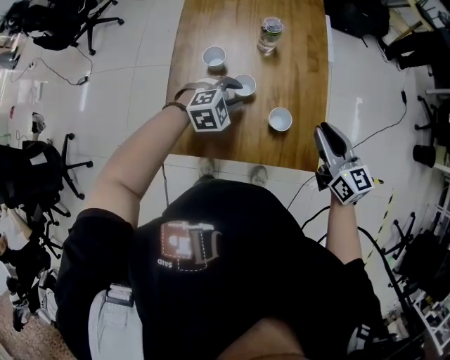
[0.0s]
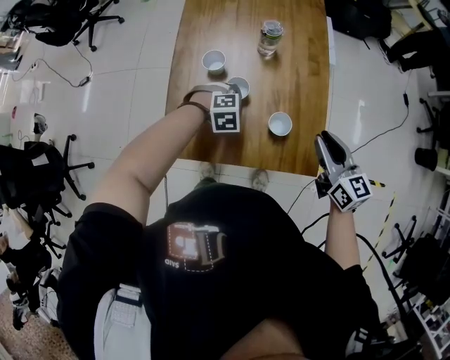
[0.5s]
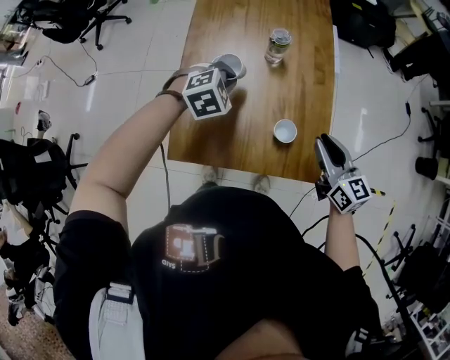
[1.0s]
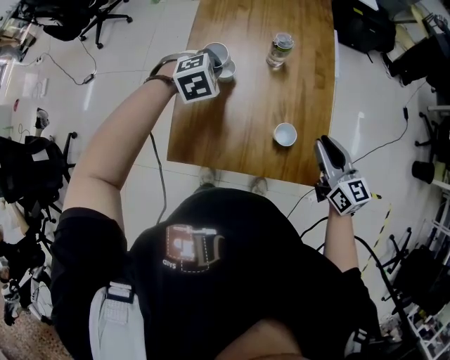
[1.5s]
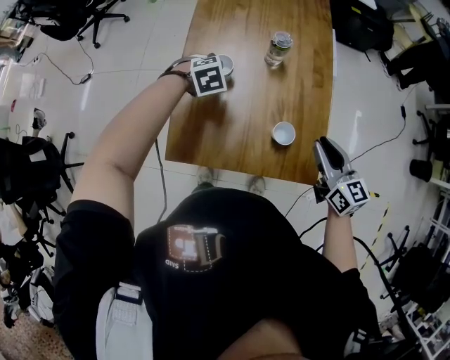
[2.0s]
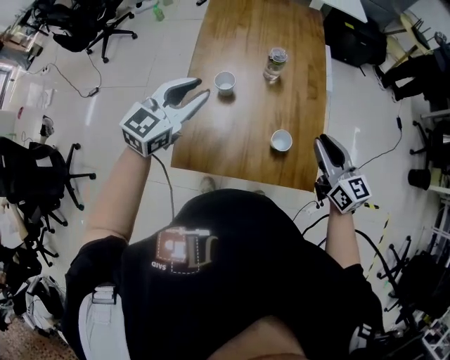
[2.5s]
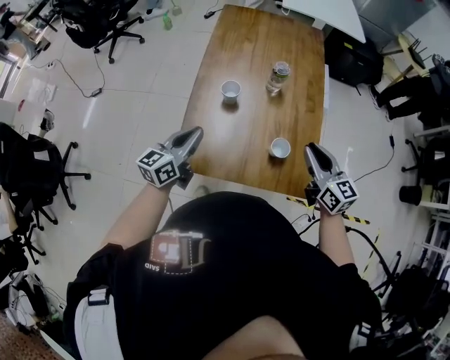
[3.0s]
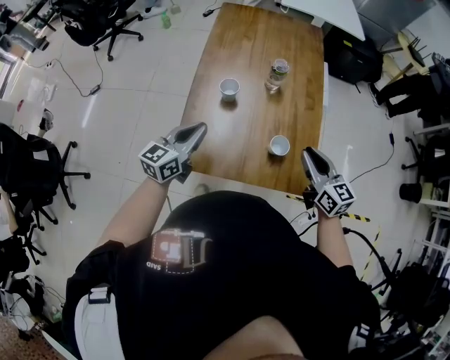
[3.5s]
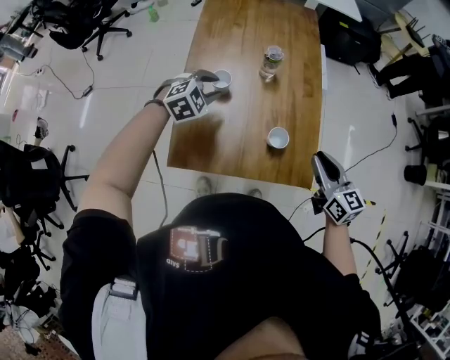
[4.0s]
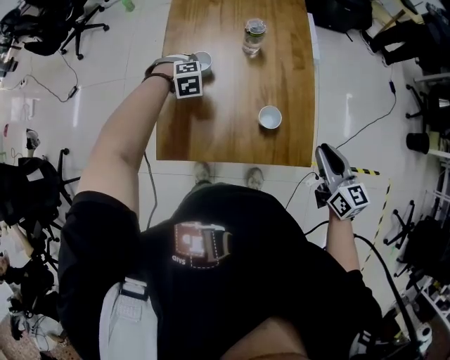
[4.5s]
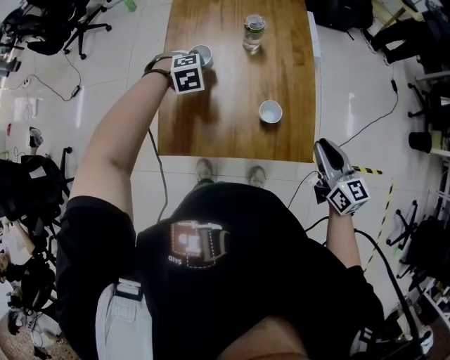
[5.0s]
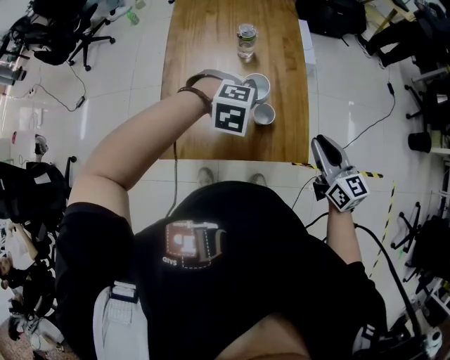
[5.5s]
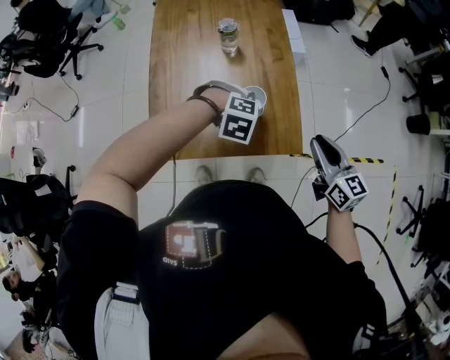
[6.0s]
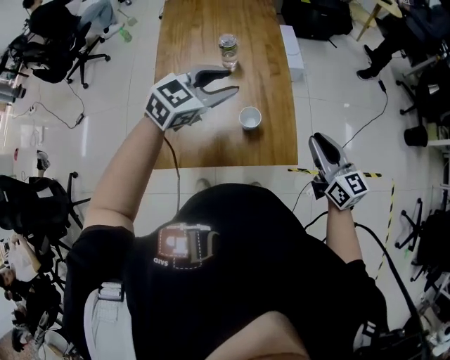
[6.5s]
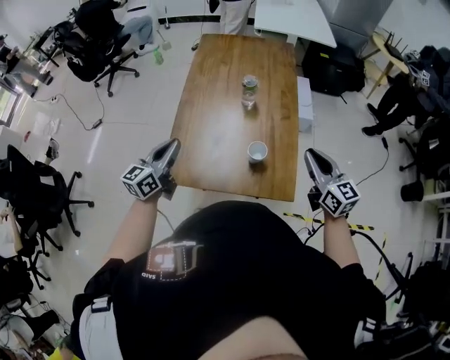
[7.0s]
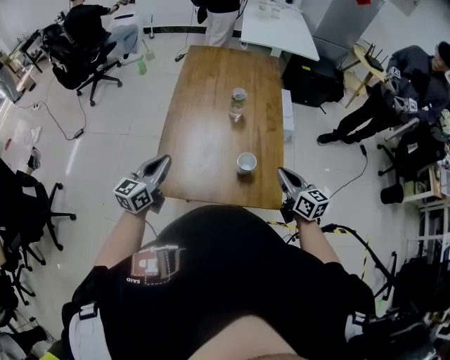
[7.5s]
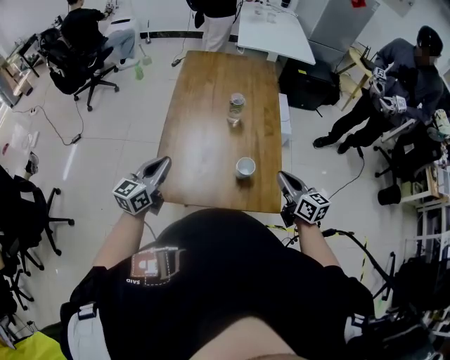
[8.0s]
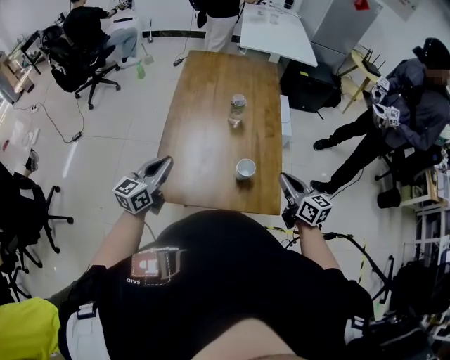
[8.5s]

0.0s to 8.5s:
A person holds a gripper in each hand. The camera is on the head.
0.0s to 2.0s: The left gripper swings up and down, roughly 15 cm each way, with 2 reversals, rotates approximately 20 degrees, and opens.
2.0s to 4.0s: The left gripper moves about 25 cm upward and comes back, changes its angle by approximately 20 degrees, and closes.
4.0s to 6.5s: The right gripper shifts by about 10 cm. Meanwhile the left gripper goes up and down, about 25 cm each way, reversing 3 times, changes its angle by approximately 30 degrees, and closes and opens again.
6.5s to 8.5s: The right gripper heads to the left, covering approximately 5 cm. The left gripper is displaced to the left by some 25 cm, turns by some 50 degrees, and closes its fingers.

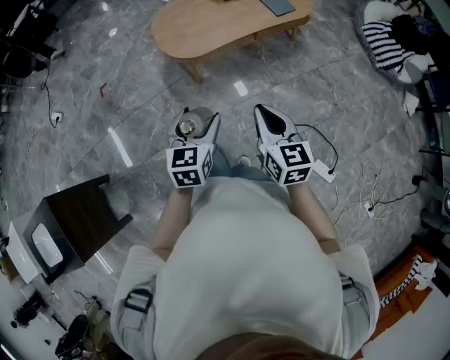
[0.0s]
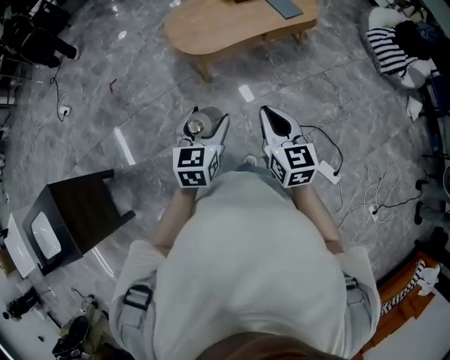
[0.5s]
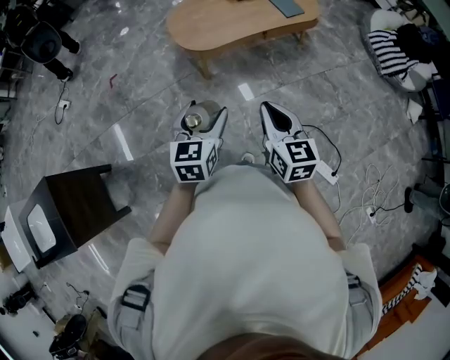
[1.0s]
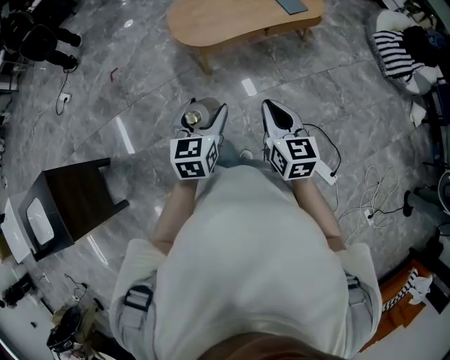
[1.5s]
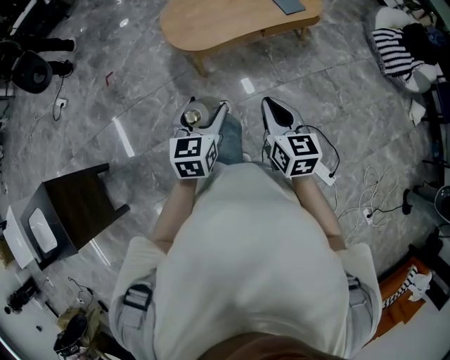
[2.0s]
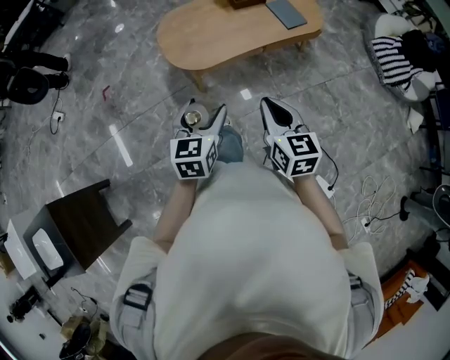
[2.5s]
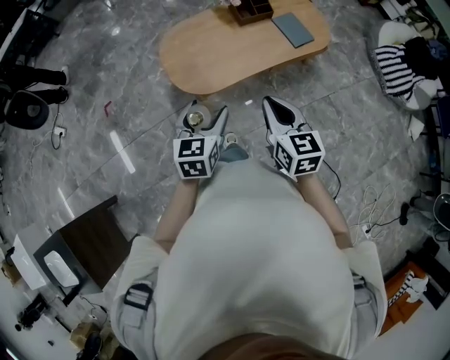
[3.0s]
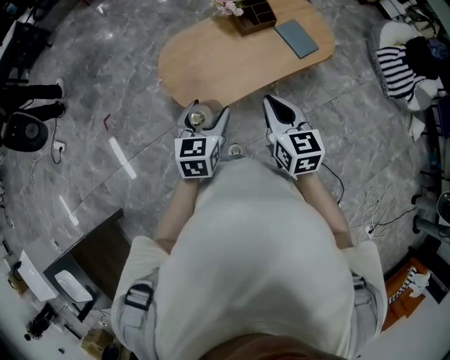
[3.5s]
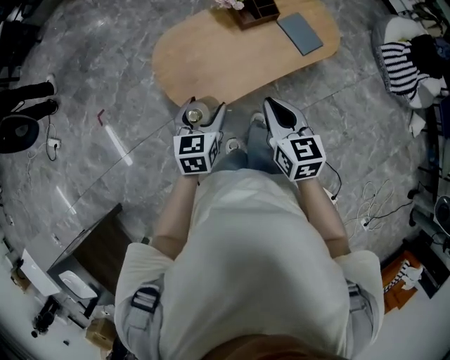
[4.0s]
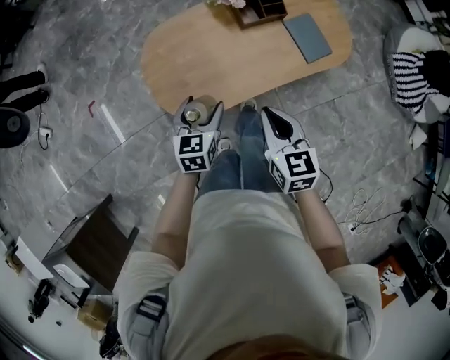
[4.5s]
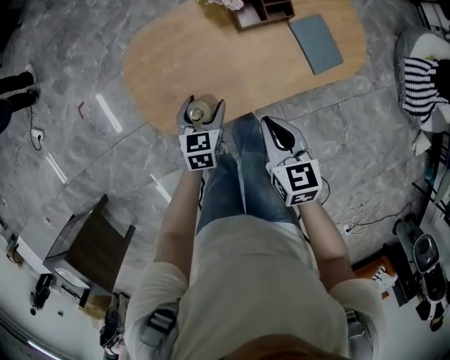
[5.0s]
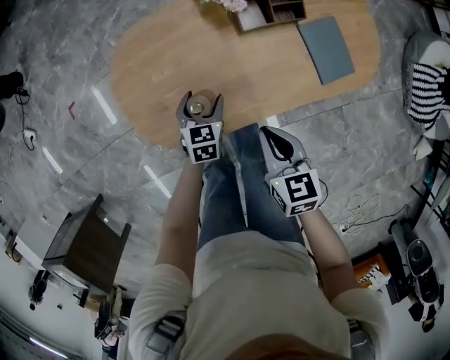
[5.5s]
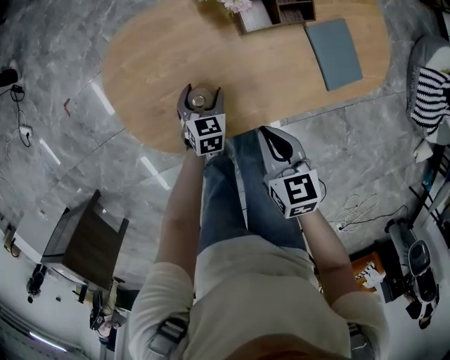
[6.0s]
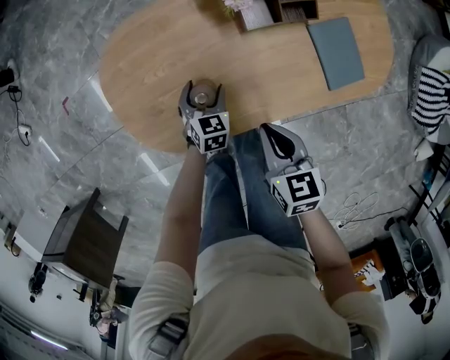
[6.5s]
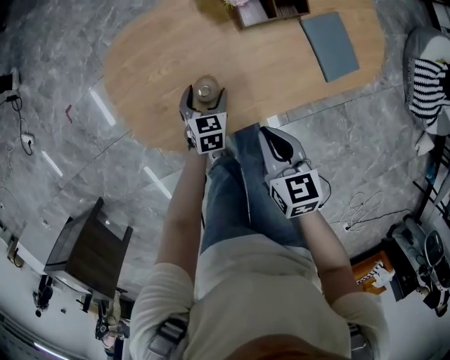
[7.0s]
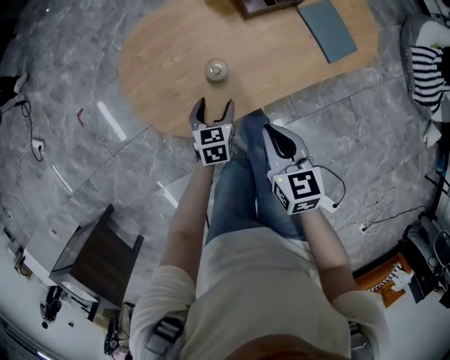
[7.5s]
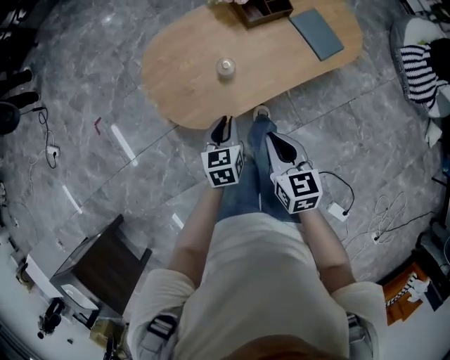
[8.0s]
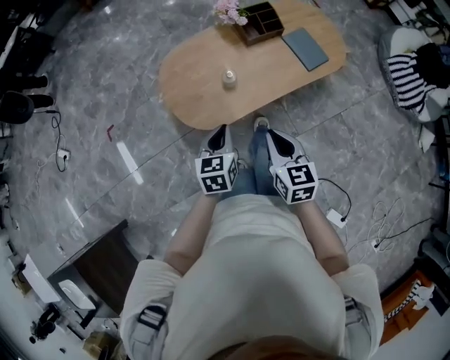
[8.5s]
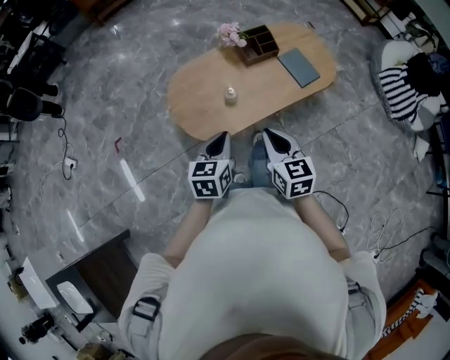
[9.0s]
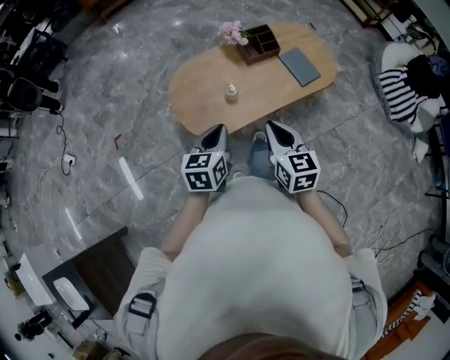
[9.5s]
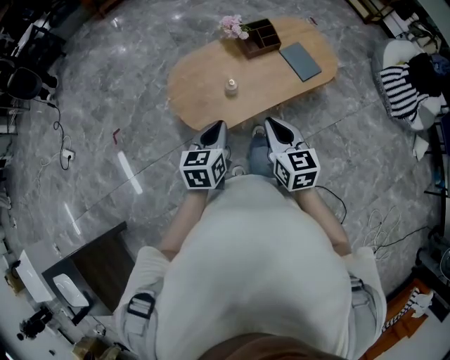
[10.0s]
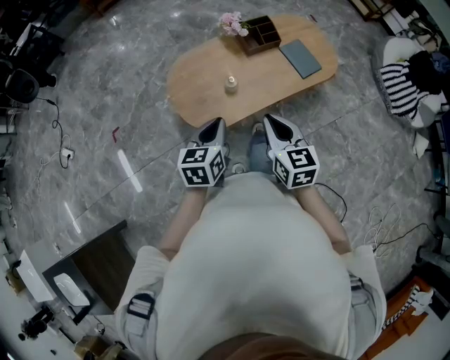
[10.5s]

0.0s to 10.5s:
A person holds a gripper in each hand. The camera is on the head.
2.0s to 4.0s: The grippers both shift forward by approximately 40 cm.
4.0s to 6.5s: Both grippers move downward and forward, approximately 35 cm. The left gripper swivels approximately 20 degrees. The right gripper changes its angle by roughly 20 degrees.
6.5s to 8.5s: The right gripper travels backward and upward by some 30 cm, and changes its angle by roughly 20 degrees; the left gripper heads upward and backward, covering about 40 cm, rotates about 20 degrees, and closes up.
8.5s to 10.5s: The two grippers go approximately 10 cm upward.

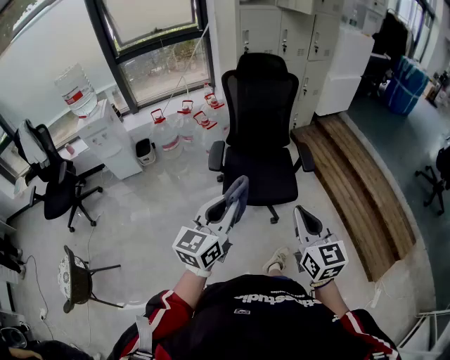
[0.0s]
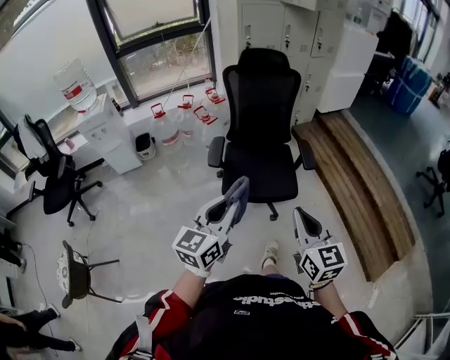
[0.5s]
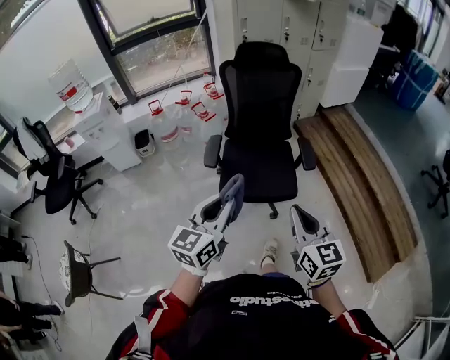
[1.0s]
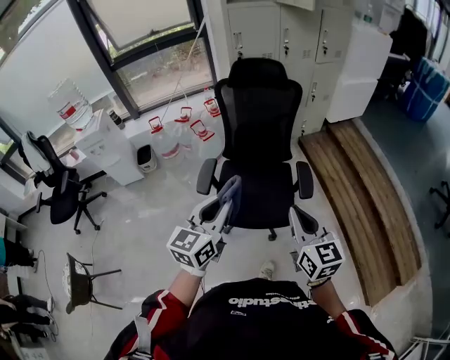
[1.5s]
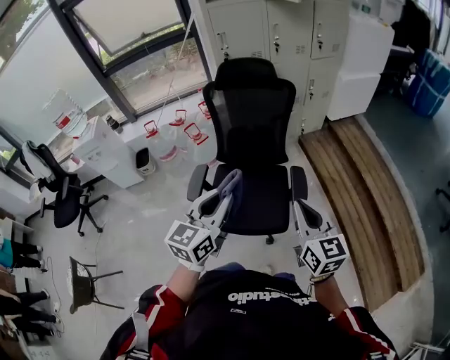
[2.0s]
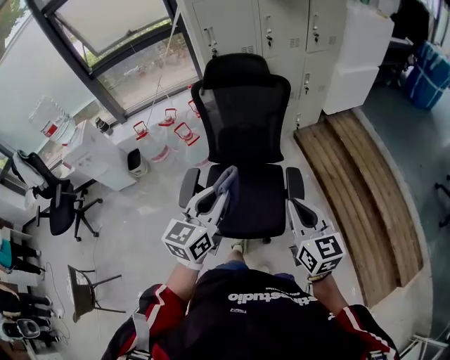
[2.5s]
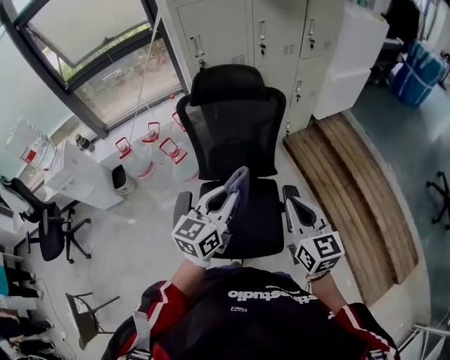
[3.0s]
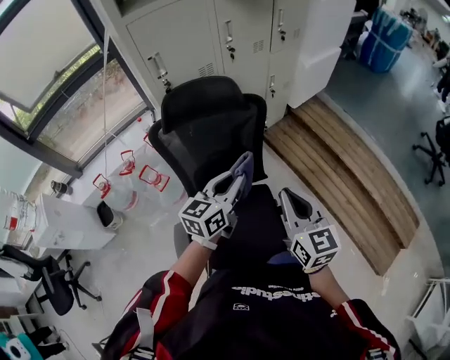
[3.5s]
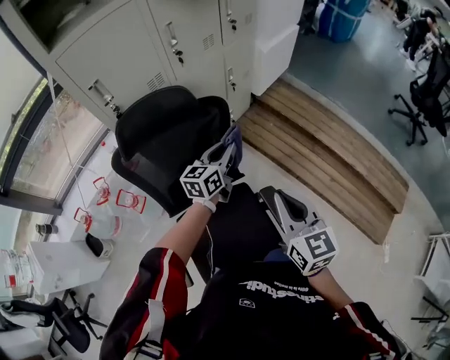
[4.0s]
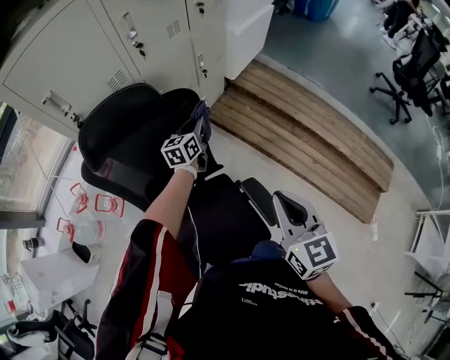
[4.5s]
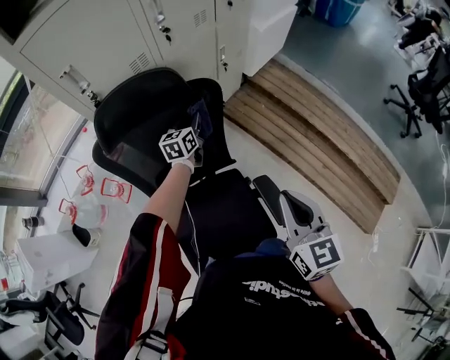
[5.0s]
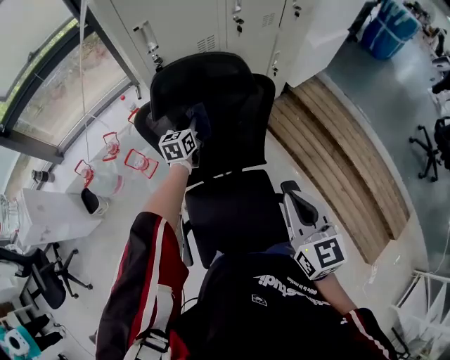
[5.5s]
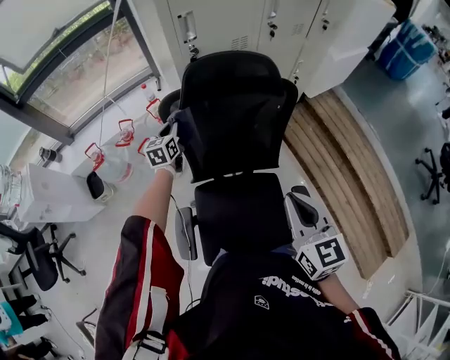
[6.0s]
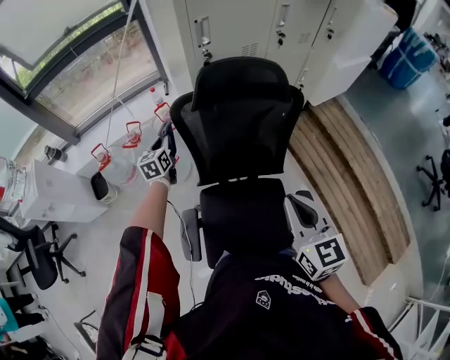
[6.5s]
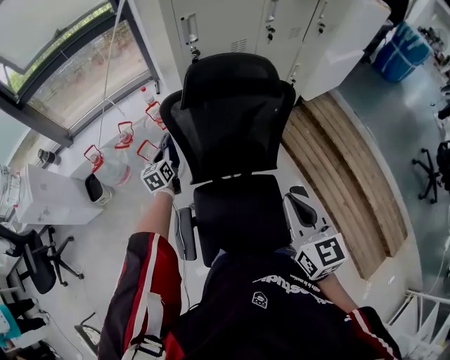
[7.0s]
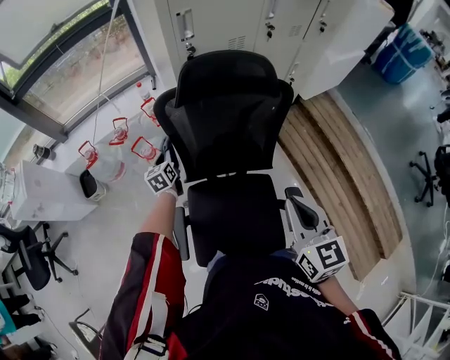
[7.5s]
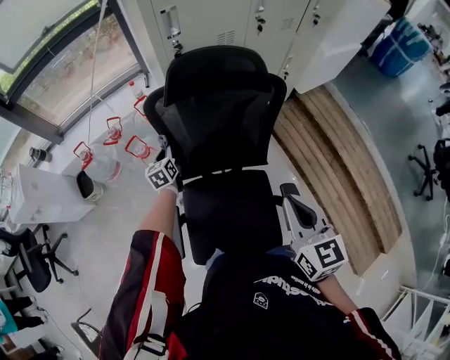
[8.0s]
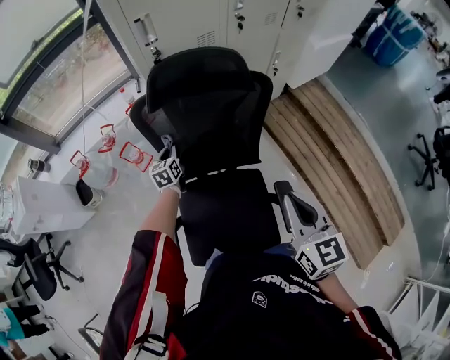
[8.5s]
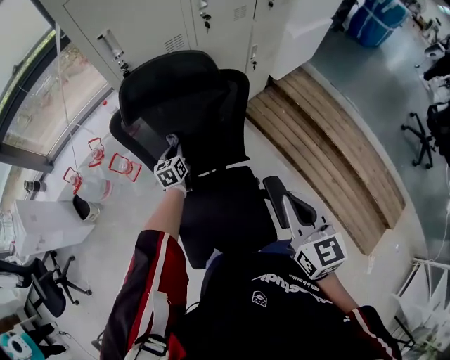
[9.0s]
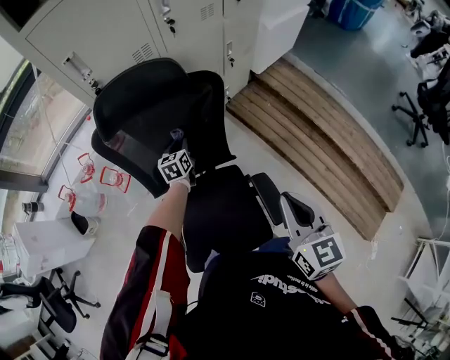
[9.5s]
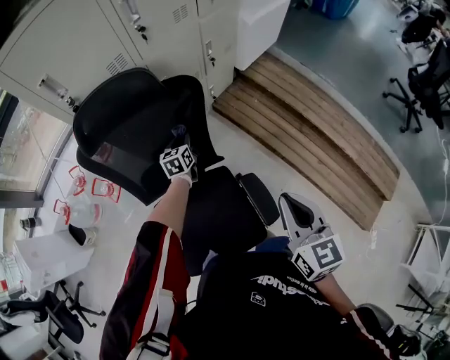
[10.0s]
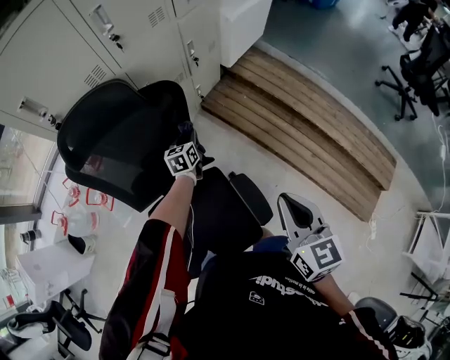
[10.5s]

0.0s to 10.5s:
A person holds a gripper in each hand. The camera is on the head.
0.0s to 2.0s: The two grippers go about 35 cm forward and to the right.
2.0s to 4.0s: The left gripper moves approximately 60 cm, and turns by some 30 degrees. Meanwhile the right gripper moves roughly 35 cm, and swivels approximately 30 degrees.
4.0s to 6.5s: The left gripper changes place by approximately 50 cm, and changes its angle by some 50 degrees. Meanwhile the right gripper changes place by roughly 15 cm, and turns by about 20 degrees.
6.5s to 8.5s: The left gripper heads to the right and downward, covering about 20 cm. The right gripper shifts about 10 cm to the right.
8.5s to 10.5s: The left gripper is displaced to the right by about 40 cm, and rotates approximately 30 degrees; the right gripper goes about 20 cm to the right.
